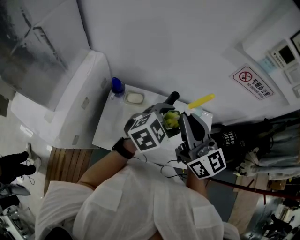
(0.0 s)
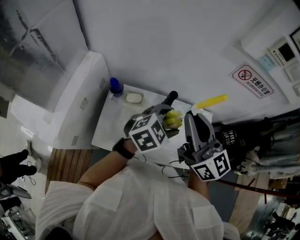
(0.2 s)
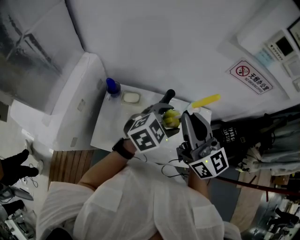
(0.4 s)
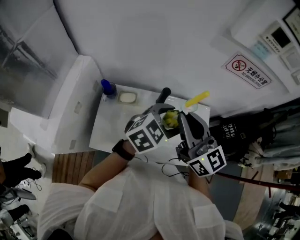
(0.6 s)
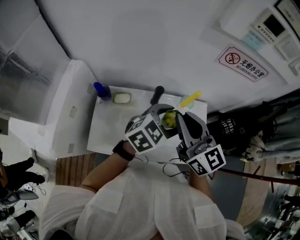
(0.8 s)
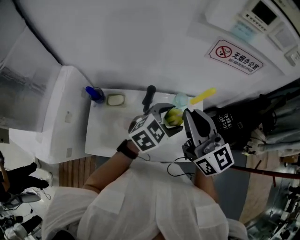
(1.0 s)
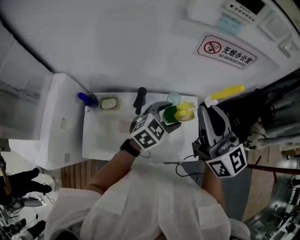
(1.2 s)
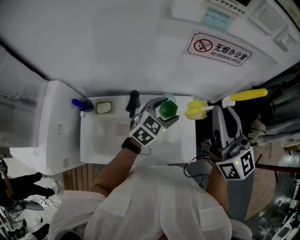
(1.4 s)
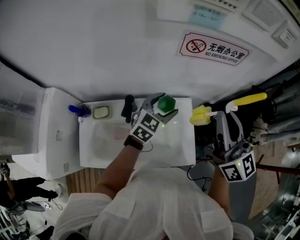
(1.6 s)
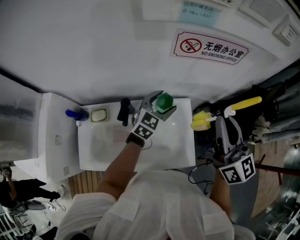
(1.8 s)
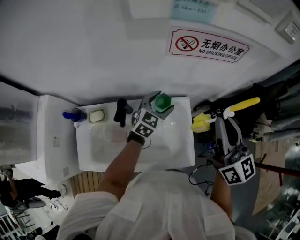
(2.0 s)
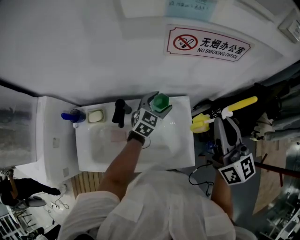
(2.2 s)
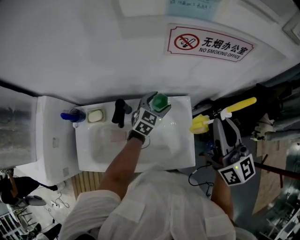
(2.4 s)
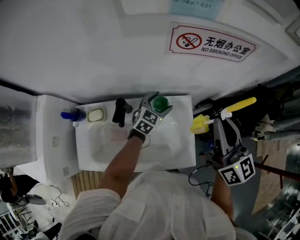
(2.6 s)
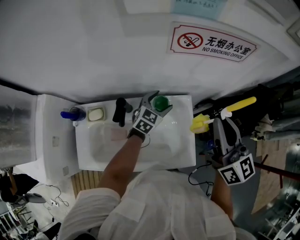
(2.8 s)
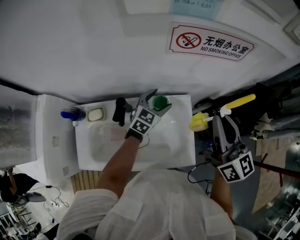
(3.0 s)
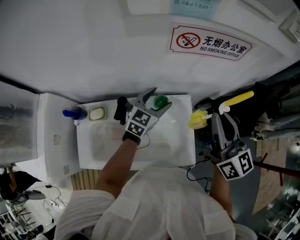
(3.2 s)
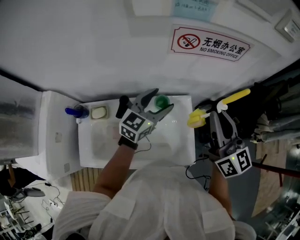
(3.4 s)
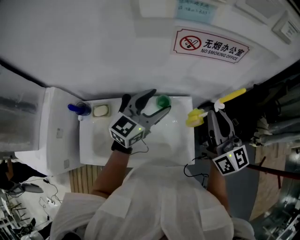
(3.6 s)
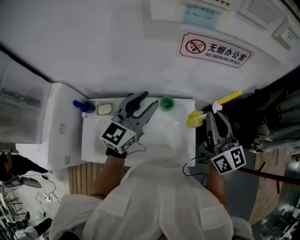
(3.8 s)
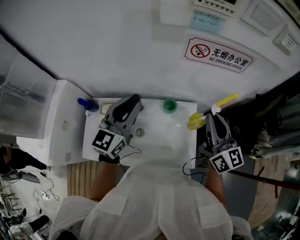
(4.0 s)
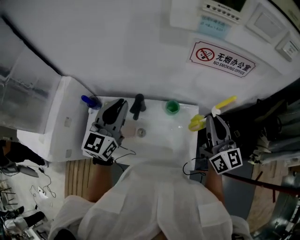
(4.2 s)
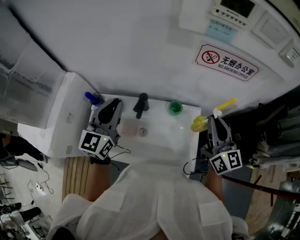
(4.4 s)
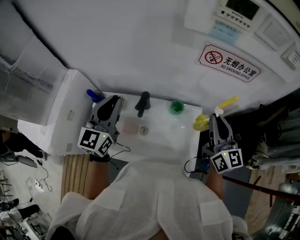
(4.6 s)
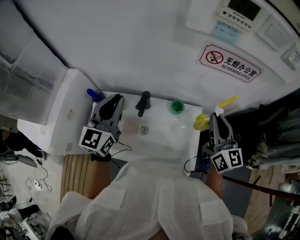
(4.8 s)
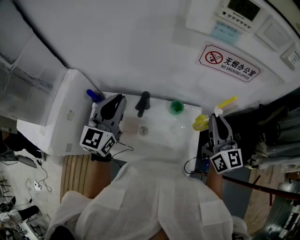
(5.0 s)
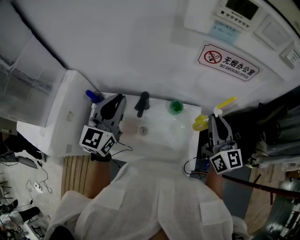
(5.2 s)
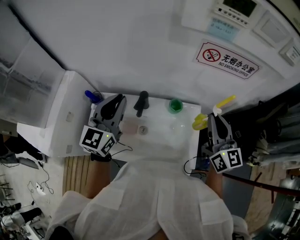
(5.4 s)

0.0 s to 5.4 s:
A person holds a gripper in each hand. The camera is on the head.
0.0 to 1.4 s: The right gripper travels to the right by approximately 25 cm; the left gripper is displaced to the right and forward by some 20 cm.
1.4 to 2.8 s: The right gripper shifts about 15 cm downward, to the right and forward. Meanwhile the left gripper is displaced downward and forward by some 15 cm.
2.8 to 4.0 s: The left gripper shifts roughly 30 cm upward, to the left and backward, swivels roughly 40 degrees, and closes its fingers.
4.0 to 5.4 s: The left gripper heads to the left, covering roughly 10 cm.

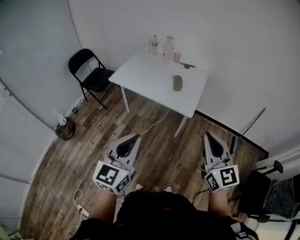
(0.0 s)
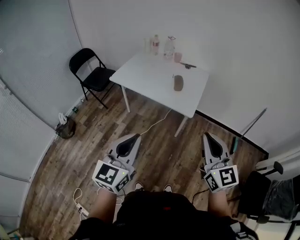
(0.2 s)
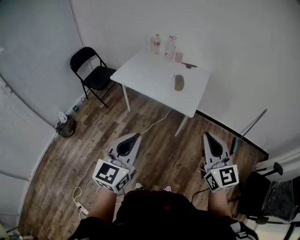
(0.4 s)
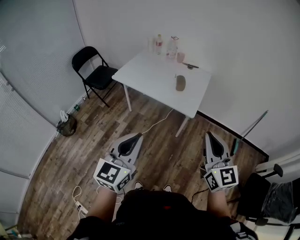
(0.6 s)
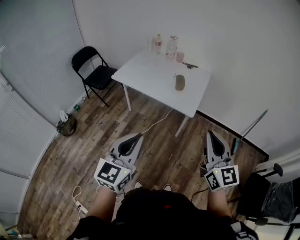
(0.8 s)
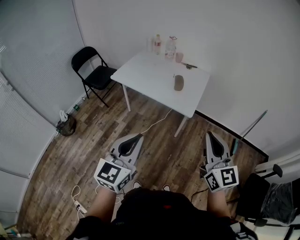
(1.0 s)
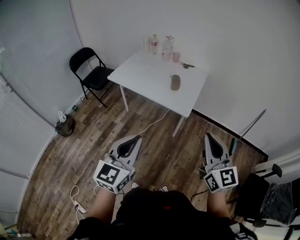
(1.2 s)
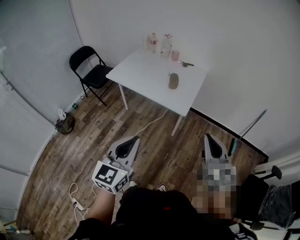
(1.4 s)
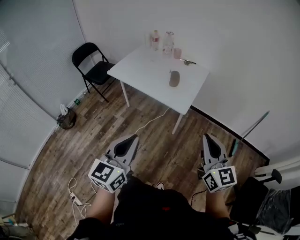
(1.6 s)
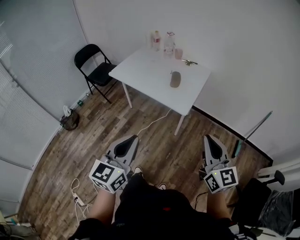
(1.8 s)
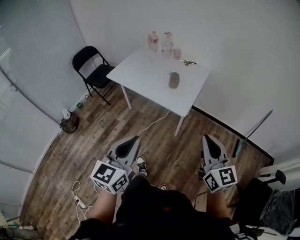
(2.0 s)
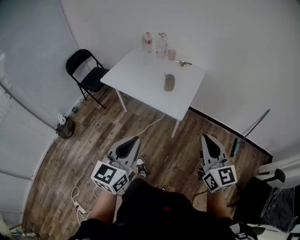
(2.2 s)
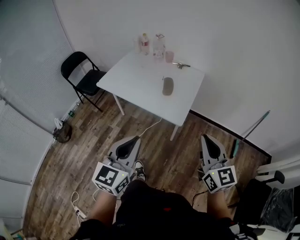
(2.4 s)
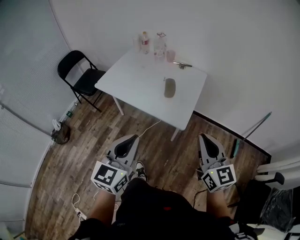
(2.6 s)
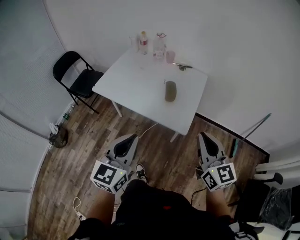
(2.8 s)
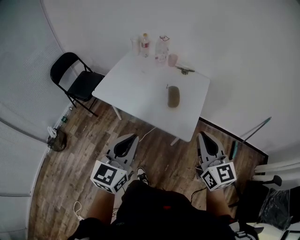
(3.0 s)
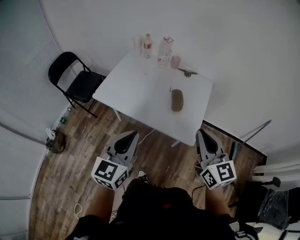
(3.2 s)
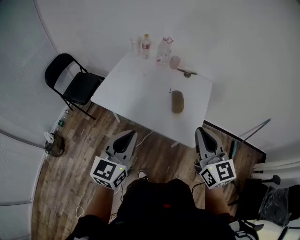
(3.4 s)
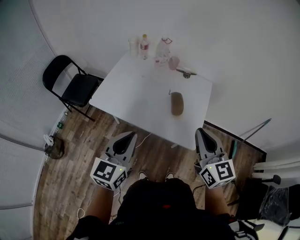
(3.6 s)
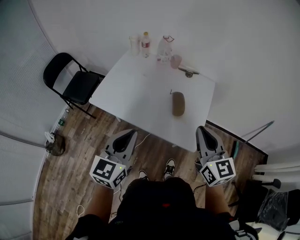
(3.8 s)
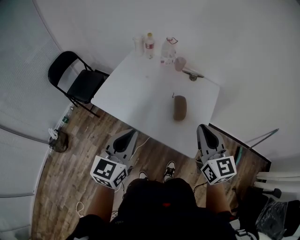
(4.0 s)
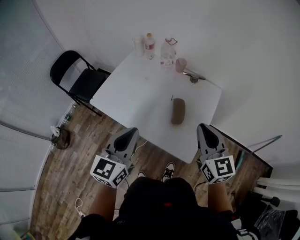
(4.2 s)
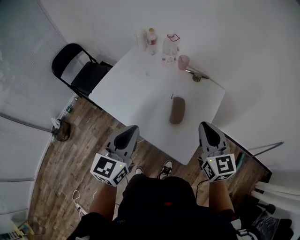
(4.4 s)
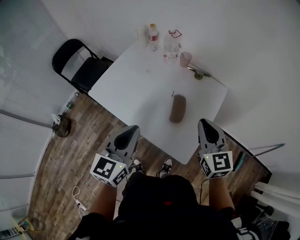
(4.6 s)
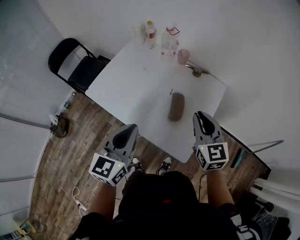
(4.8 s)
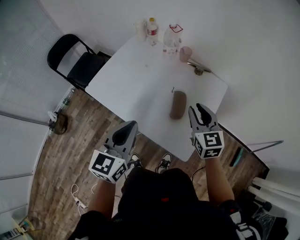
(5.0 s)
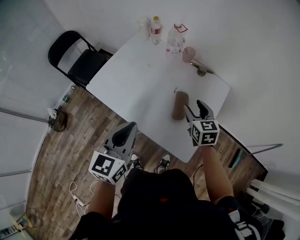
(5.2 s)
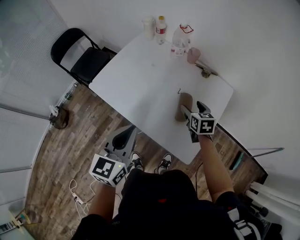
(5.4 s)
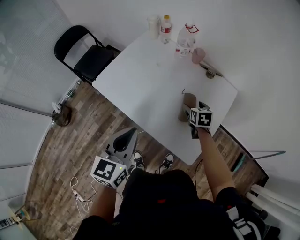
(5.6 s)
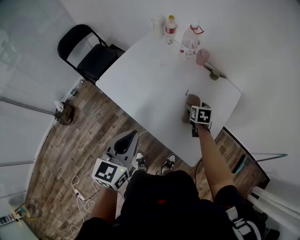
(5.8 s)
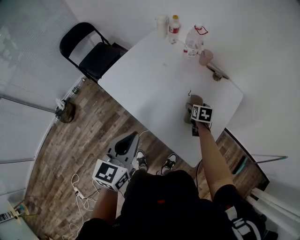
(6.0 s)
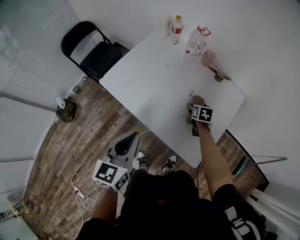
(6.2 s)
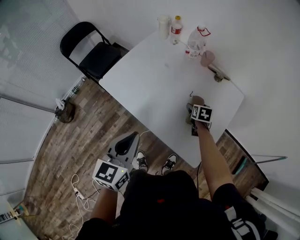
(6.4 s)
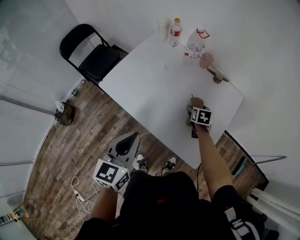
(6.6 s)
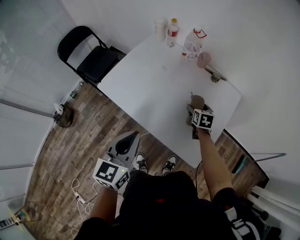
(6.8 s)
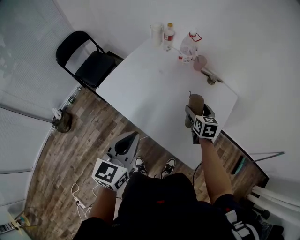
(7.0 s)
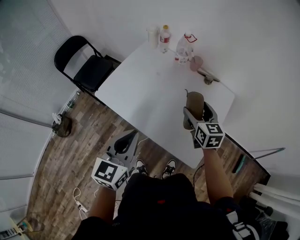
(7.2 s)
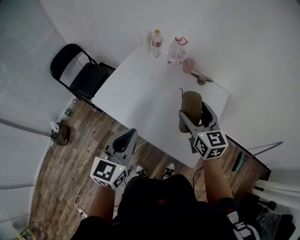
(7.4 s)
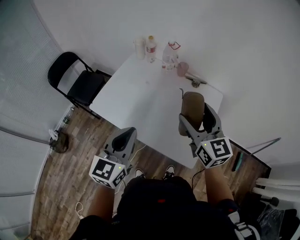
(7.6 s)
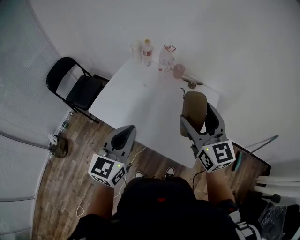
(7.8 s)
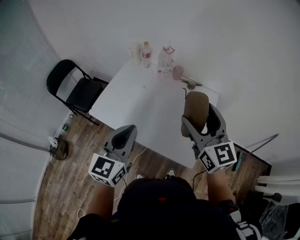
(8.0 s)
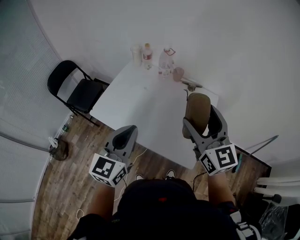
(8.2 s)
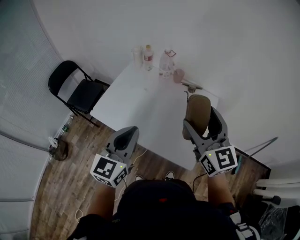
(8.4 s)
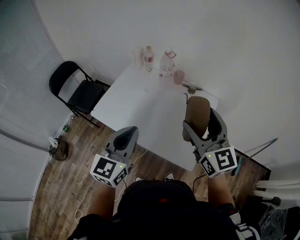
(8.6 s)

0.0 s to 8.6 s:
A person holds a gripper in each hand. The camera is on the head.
0.0 to 1.4 s: Both grippers move to the right, some 10 cm.
1.4 to 2.8 s: Both grippers travel together forward, about 20 cm.
2.8 to 4.4 s: The two grippers go approximately 30 cm forward.
4.4 to 5.8 s: The left gripper heads downward and to the left, covering about 10 cm; the right gripper moves downward and forward, about 35 cm, tips its fingers downward by roughly 40 degrees, and opens.
5.8 to 7.2 s: The right gripper is displaced upward by some 20 cm, and swivels about 30 degrees.
7.2 to 8.6 s: The left gripper heads upward, covering approximately 5 cm; the right gripper shifts about 25 cm upward and backward, and swivels about 30 degrees.

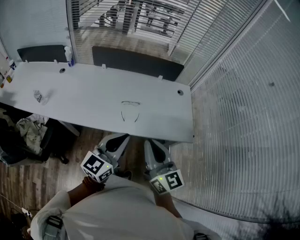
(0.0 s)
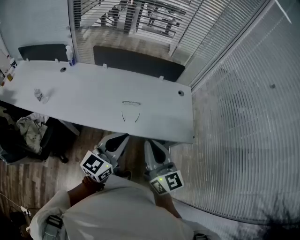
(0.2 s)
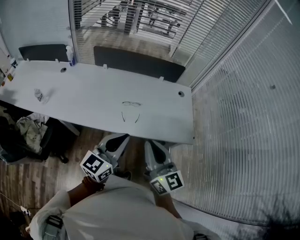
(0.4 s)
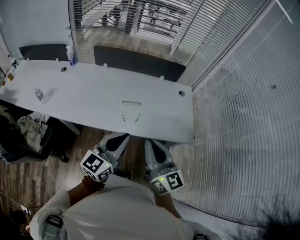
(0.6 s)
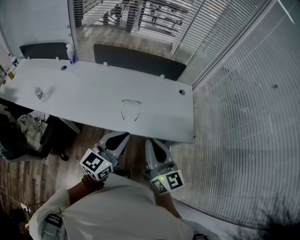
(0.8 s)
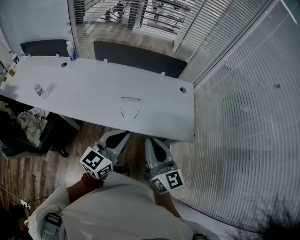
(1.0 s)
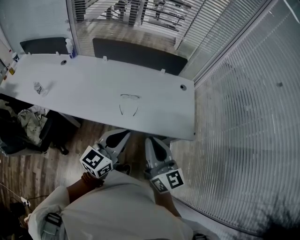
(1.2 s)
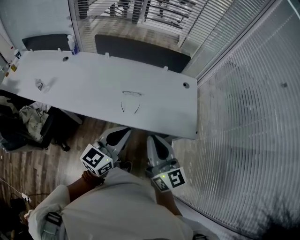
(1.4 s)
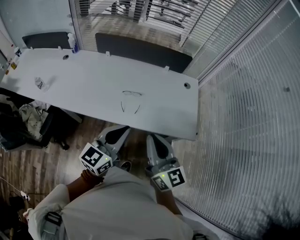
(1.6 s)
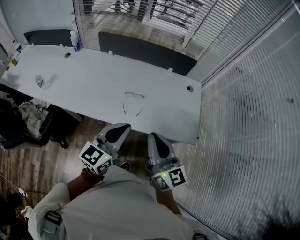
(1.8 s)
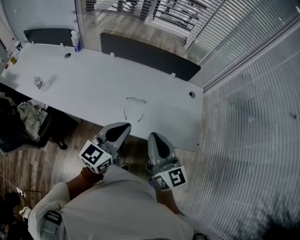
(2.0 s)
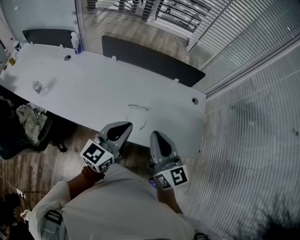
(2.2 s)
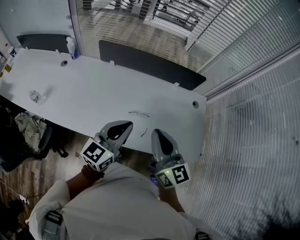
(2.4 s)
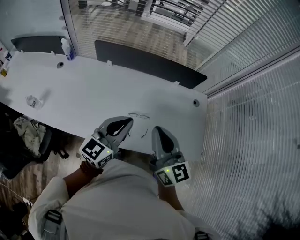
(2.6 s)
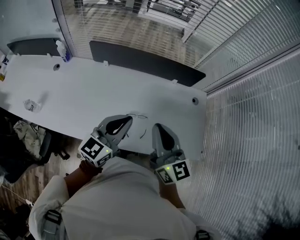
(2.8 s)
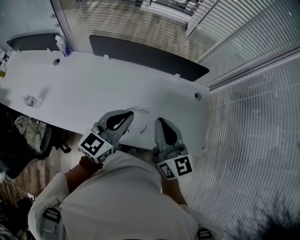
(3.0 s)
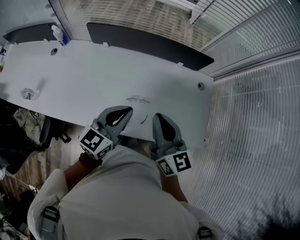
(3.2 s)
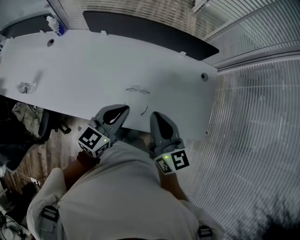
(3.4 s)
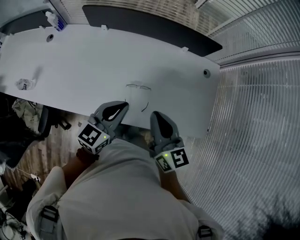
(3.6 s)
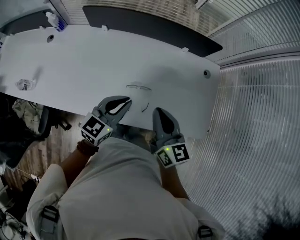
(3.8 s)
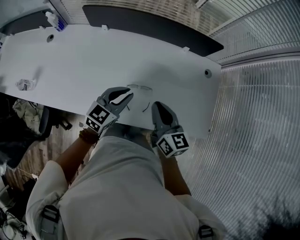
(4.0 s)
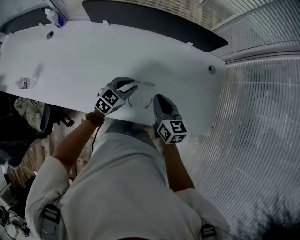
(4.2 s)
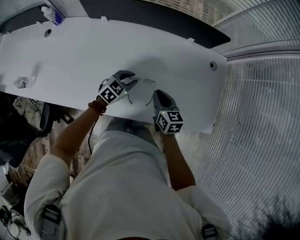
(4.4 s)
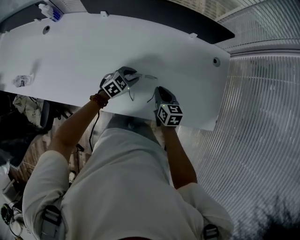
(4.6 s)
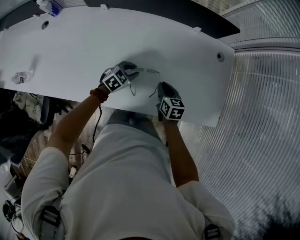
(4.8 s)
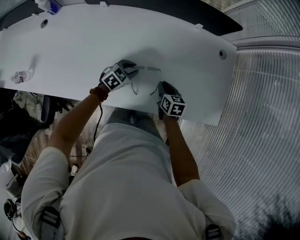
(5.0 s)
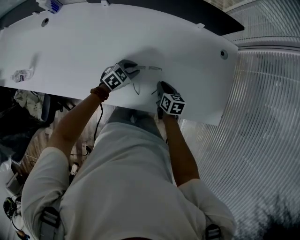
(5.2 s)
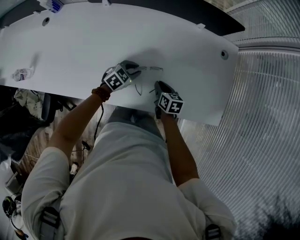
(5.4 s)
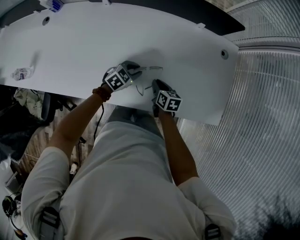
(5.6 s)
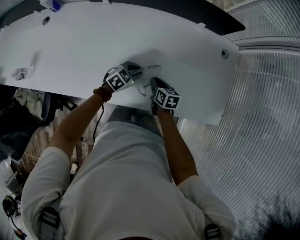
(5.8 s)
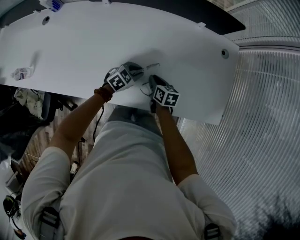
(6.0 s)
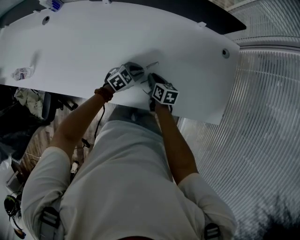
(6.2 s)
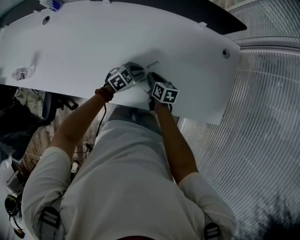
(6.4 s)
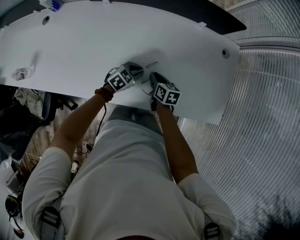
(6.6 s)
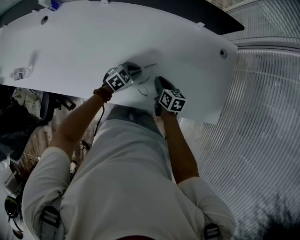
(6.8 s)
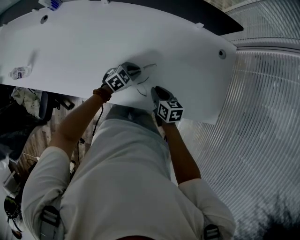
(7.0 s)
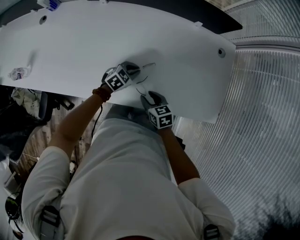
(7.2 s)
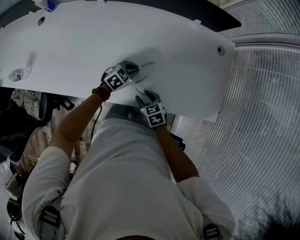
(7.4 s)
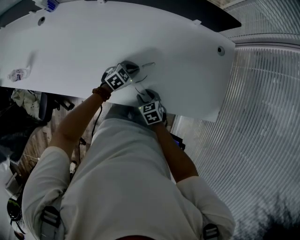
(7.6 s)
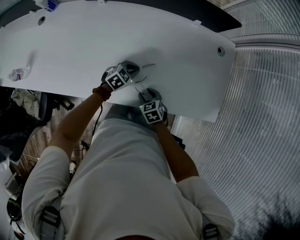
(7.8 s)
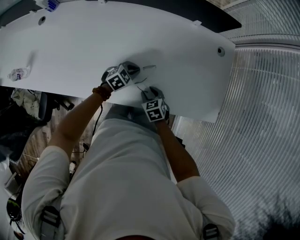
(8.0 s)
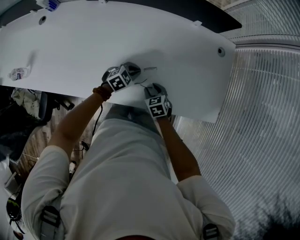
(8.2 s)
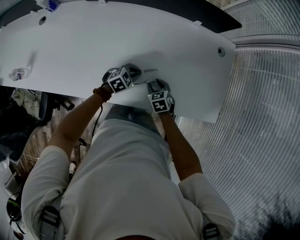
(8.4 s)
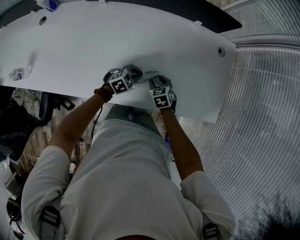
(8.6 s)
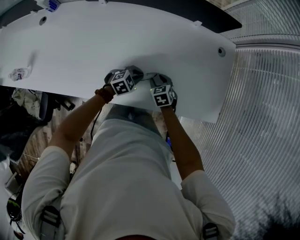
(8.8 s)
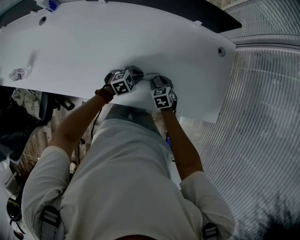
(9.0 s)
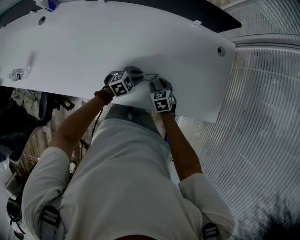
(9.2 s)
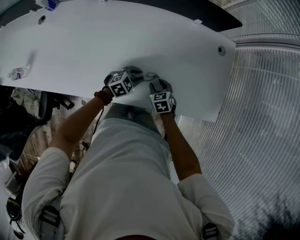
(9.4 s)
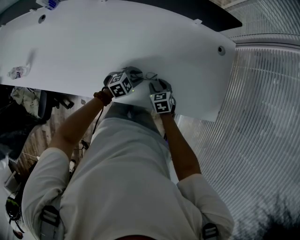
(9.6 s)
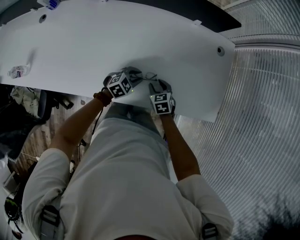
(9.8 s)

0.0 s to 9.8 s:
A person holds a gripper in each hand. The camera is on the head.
0.0 to 1.4 s: The left gripper moves about 5 cm. Meanwhile the right gripper ends up some 5 cm from where it was.
1.4 to 2.8 s: Both grippers travel together forward, about 25 cm.
2.8 to 4.2 s: Both grippers travel together downward, roughly 25 cm. The left gripper swivels roughly 30 degrees, and opens its fingers. The right gripper swivels roughly 30 degrees.
4.2 to 5.6 s: Both grippers travel together downward, about 15 cm. The right gripper turns by approximately 30 degrees.
5.6 to 7.0 s: The right gripper ends up about 5 cm from where it was.
7.0 to 8.4 s: The right gripper heads downward, covering roughly 5 cm, moves about 5 cm backward and comes back, changes its angle by some 30 degrees, and opens up.
8.4 to 9.8 s: The left gripper opens.
